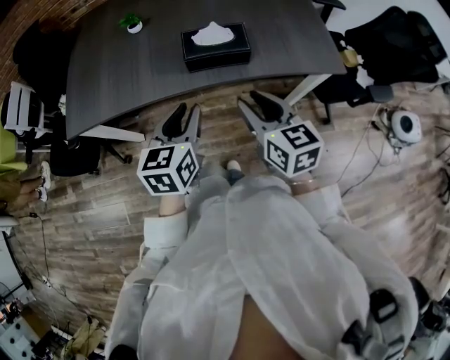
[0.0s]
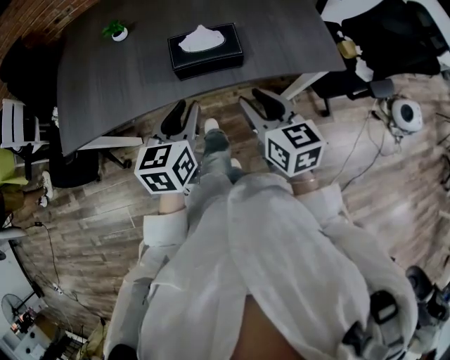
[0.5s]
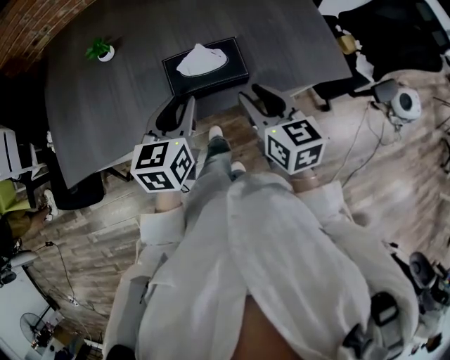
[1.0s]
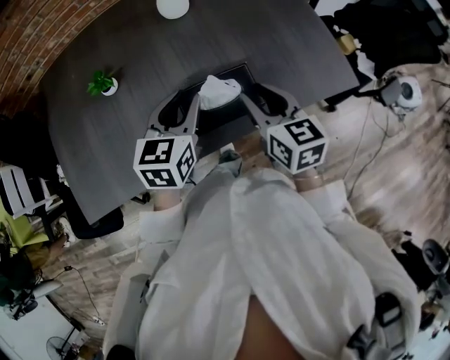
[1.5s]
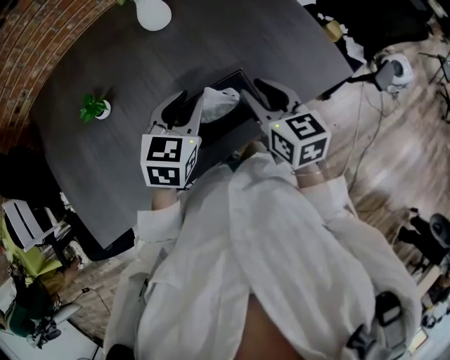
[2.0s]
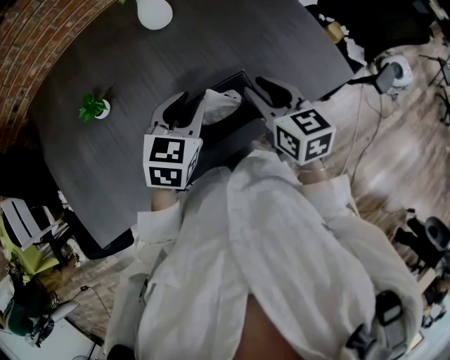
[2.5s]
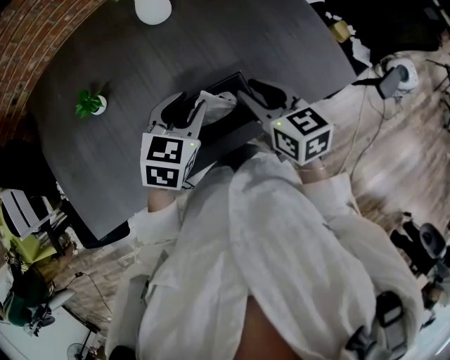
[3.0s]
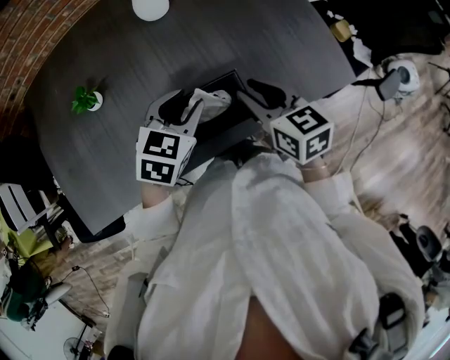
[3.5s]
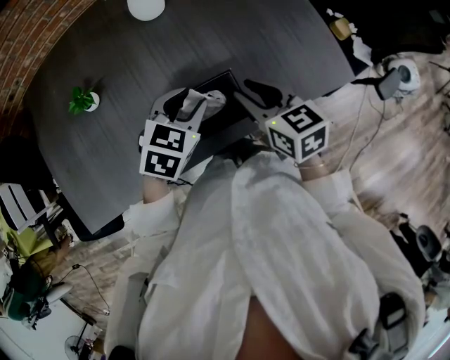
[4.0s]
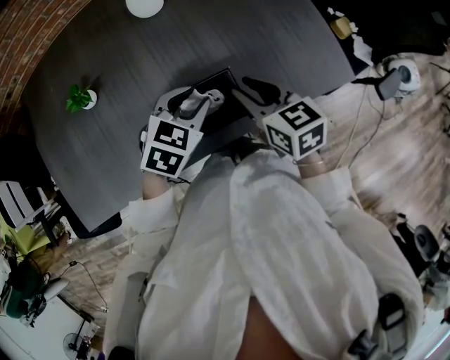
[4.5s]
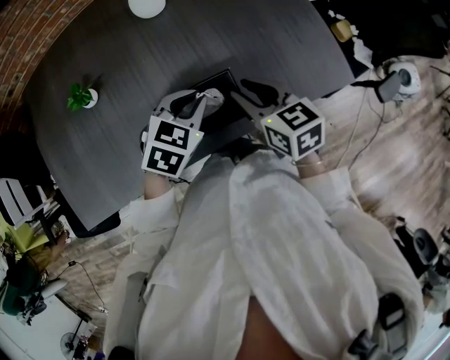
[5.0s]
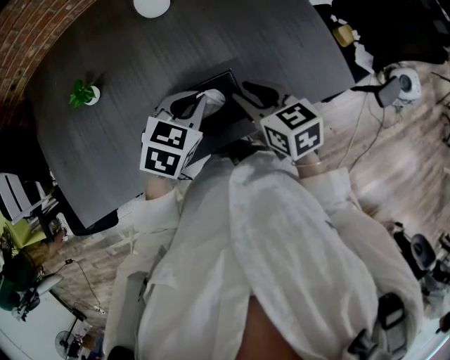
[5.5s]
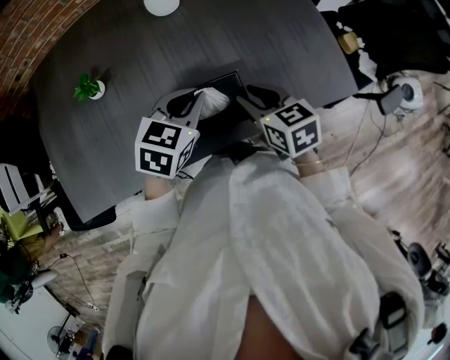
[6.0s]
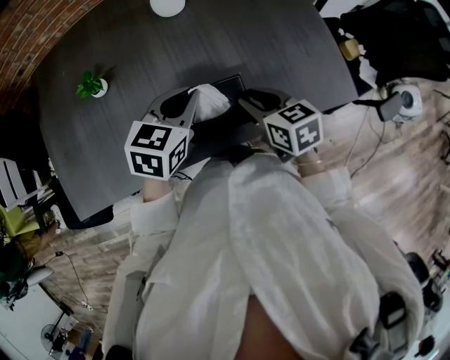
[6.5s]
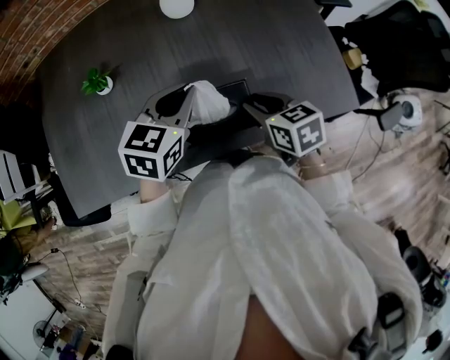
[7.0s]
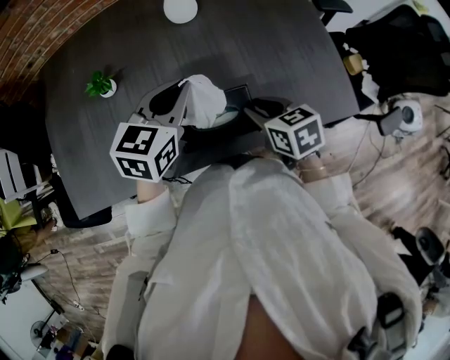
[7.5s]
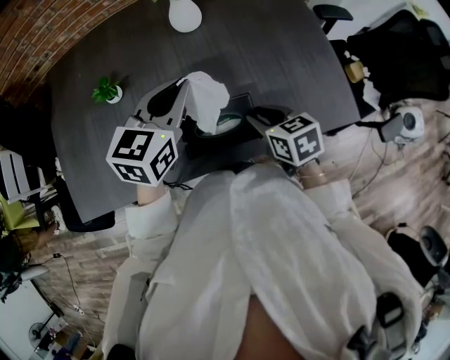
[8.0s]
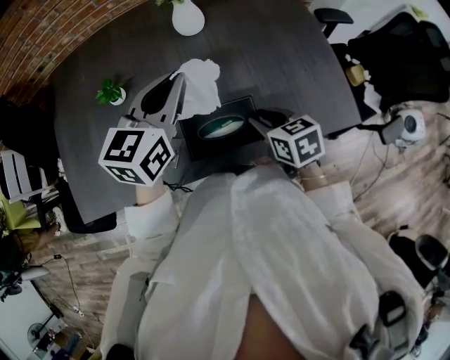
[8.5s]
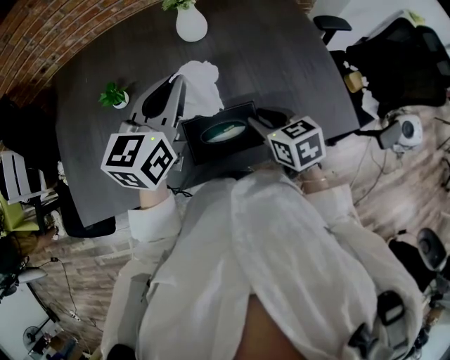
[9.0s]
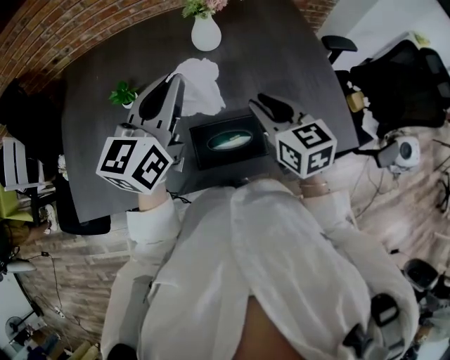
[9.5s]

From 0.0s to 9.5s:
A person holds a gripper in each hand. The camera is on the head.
From 0.0s to 2.0s: The grippers both shift forward by about 30 cm. The right gripper rotates some 20 degrees. Meanwhile the left gripper changes its angle by approximately 40 degrees.
From 2.0s to 4.0s: The left gripper ends up some 5 cm from where it was.
From 4.0s to 5.5s: The left gripper closes.
From 5.5s to 7.5s: The left gripper heads upward and to the left, covering roughly 10 cm, and changes its angle by about 20 degrees.
From 7.5s to 9.5s: The right gripper moves upward and forward, approximately 15 cm, and changes its angle by approximately 20 degrees; the left gripper travels upward by some 10 cm, and swivels approximately 30 degrees.

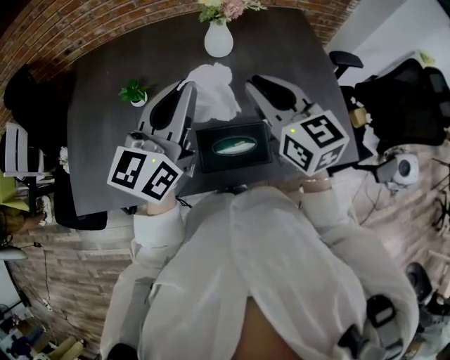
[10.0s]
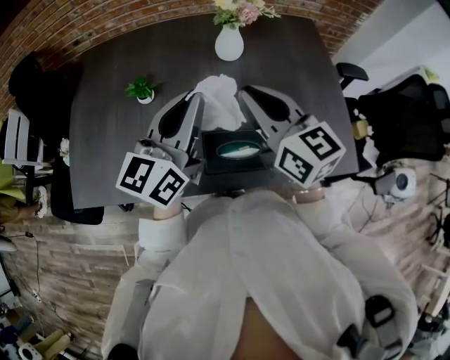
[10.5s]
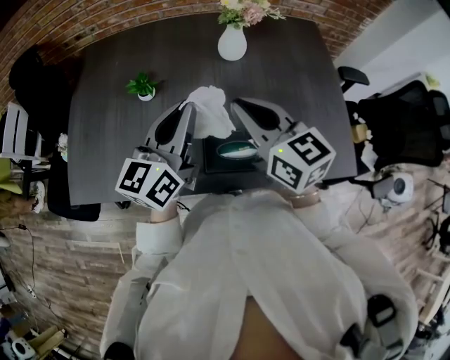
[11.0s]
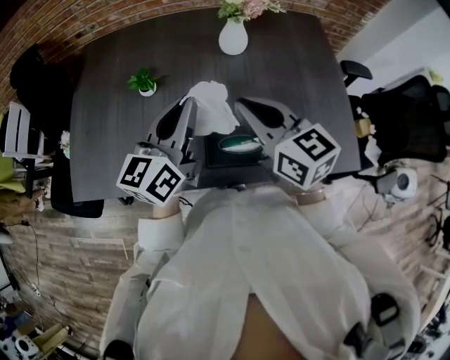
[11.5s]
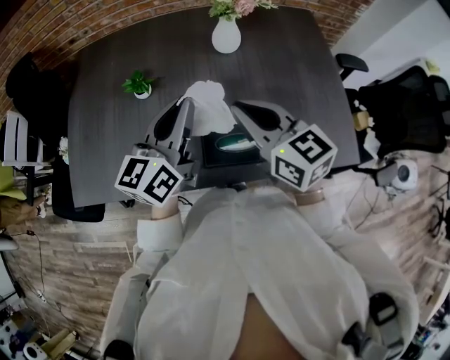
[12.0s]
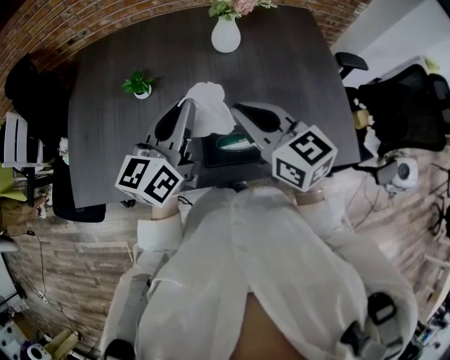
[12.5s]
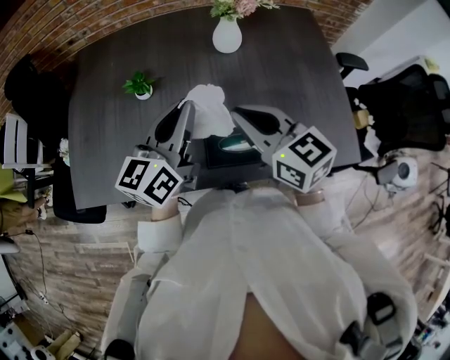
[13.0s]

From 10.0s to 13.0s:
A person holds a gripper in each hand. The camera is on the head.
From 10.0s to 11.5s: The right gripper goes roughly 5 cm to the left; the left gripper heads downward, covering roughly 5 cm.
From 11.5s to 13.0s: The grippers stay close to where they were, moving slightly.

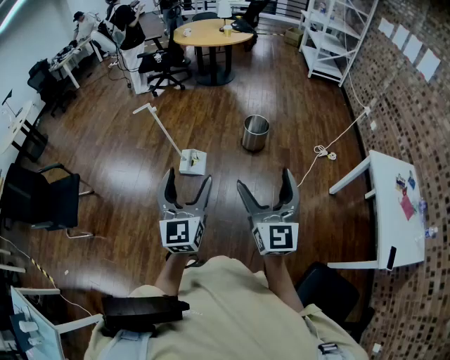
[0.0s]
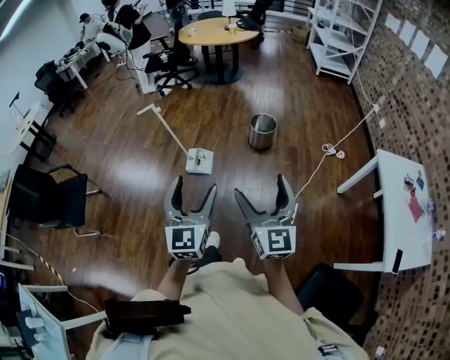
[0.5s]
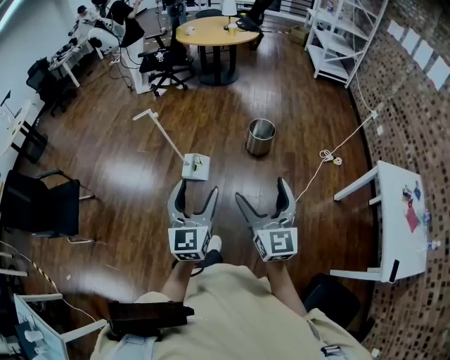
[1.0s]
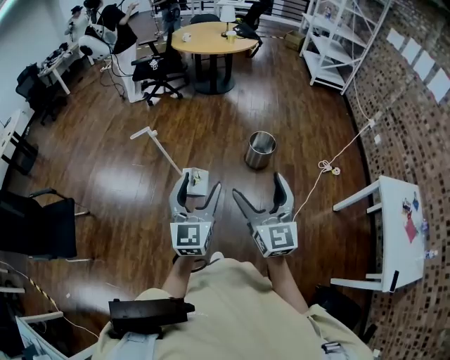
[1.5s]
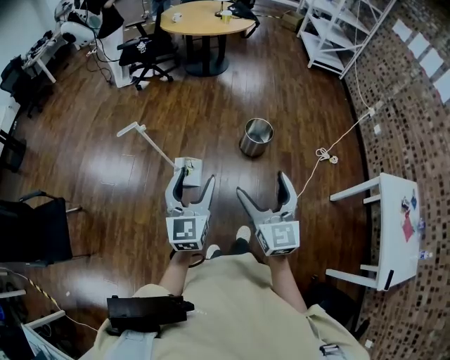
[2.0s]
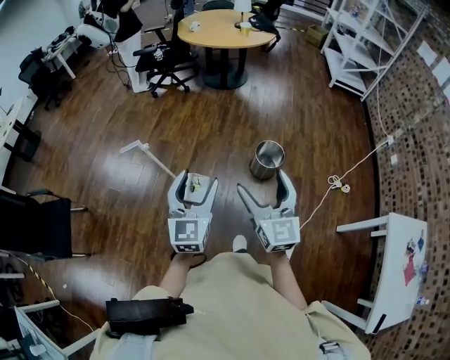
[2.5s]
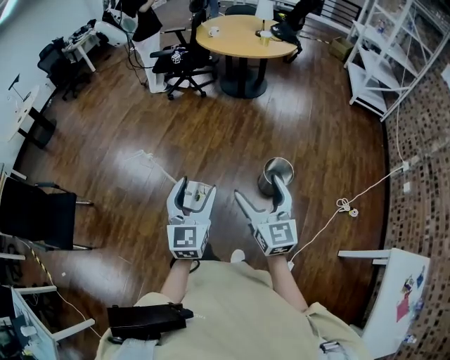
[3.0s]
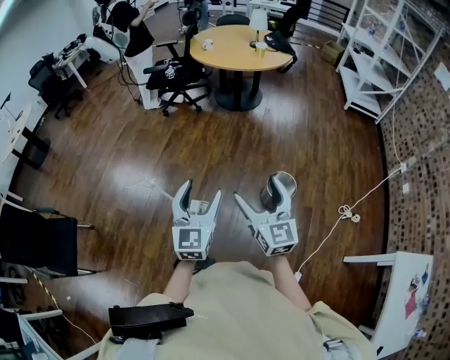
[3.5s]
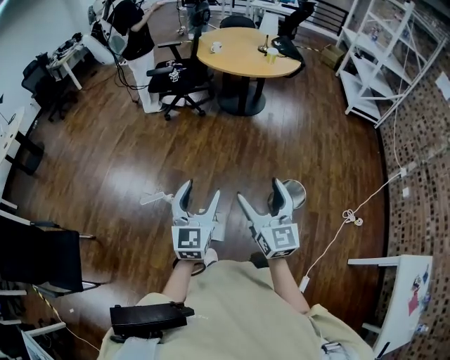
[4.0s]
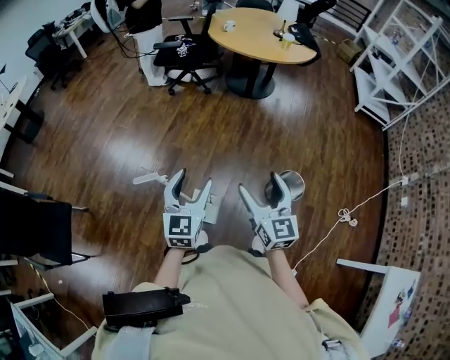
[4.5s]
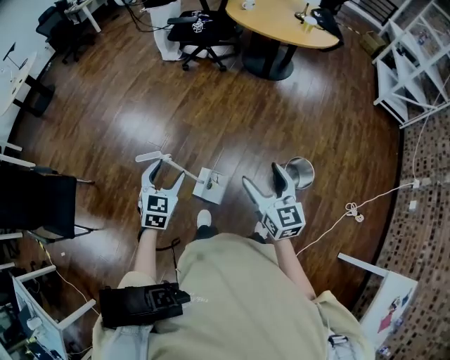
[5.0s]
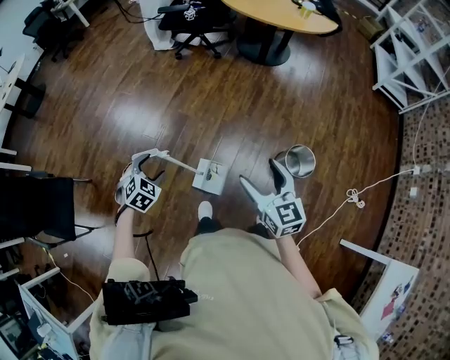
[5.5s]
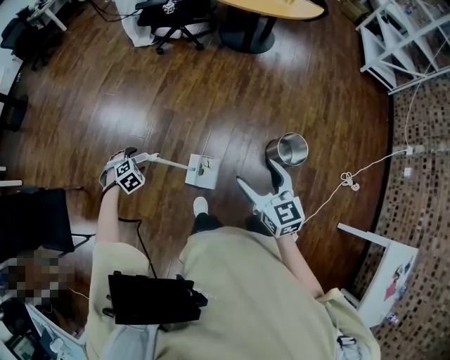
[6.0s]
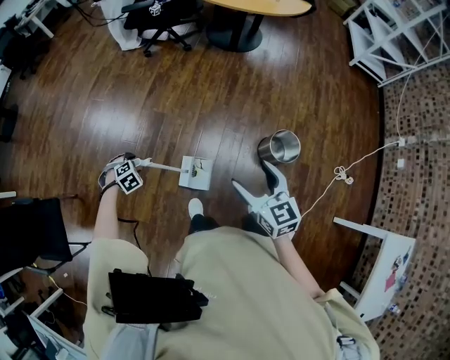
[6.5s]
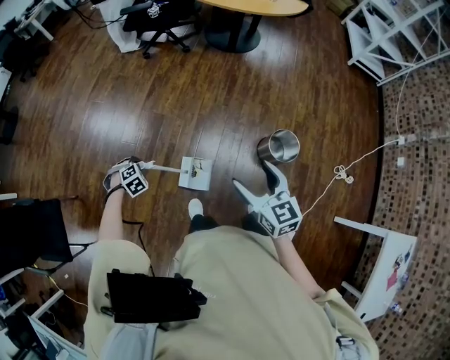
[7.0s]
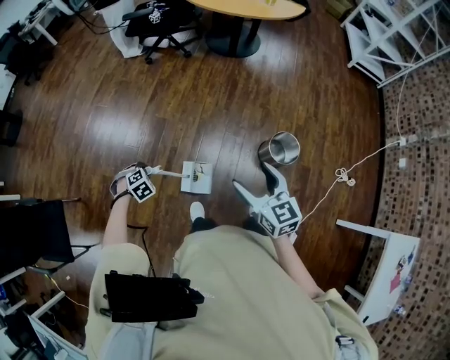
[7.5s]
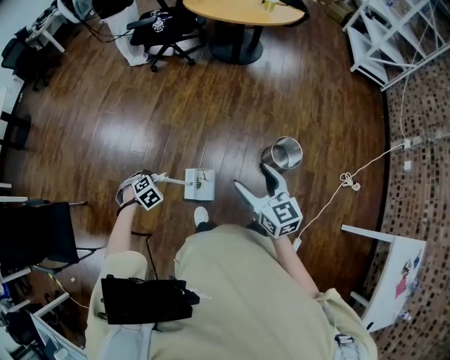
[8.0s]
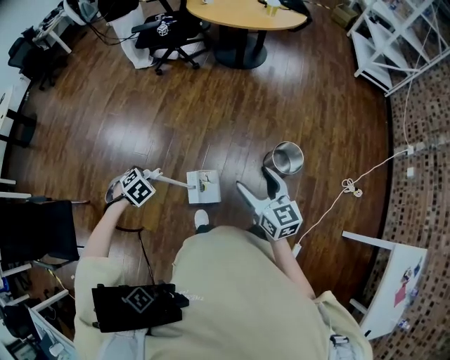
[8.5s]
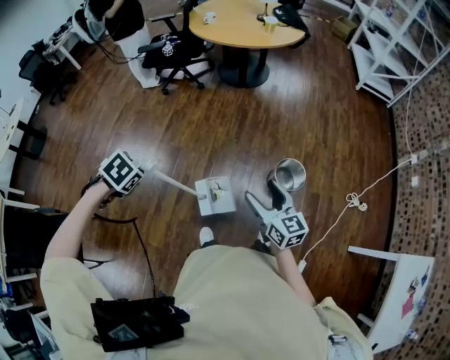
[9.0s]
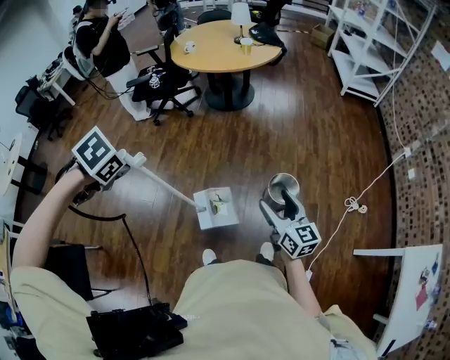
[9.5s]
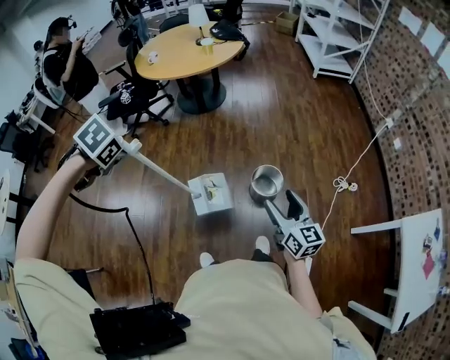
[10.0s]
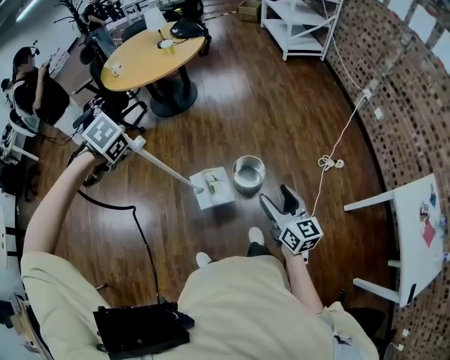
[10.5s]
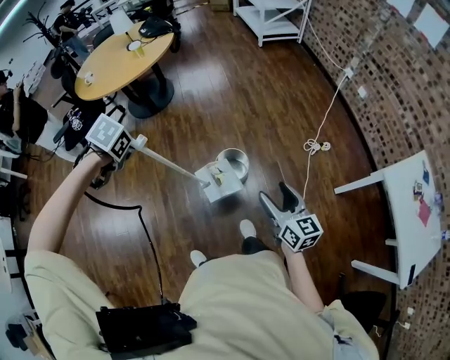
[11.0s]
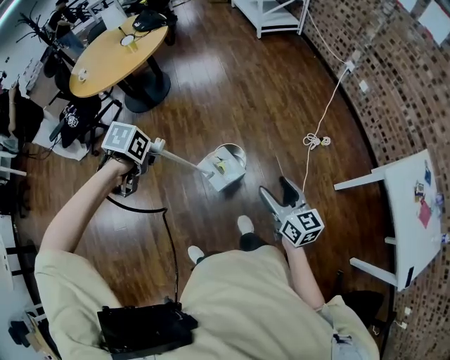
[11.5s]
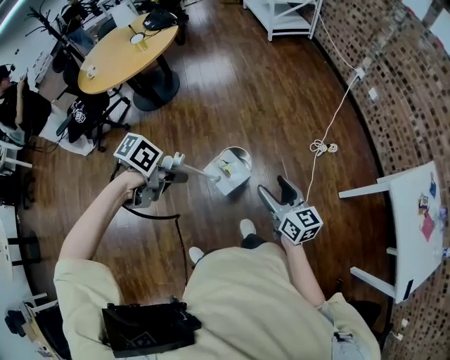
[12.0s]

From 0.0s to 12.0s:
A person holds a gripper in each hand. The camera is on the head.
From 0.0s to 2.0s: The two grippers go approximately 30 cm forward.
From 2.0s to 4.0s: The two grippers go some 35 cm forward.
From 4.0s to 6.0s: The left gripper heads downward and to the left, covering some 40 cm, and tilts its fingers some 70 degrees downward, while the right gripper goes roughly 15 cm downward, and turns by some 30 degrees.
From 6.0s to 8.0s: The left gripper moves roughly 10 cm, and closes.
From 8.0s to 10.0s: The left gripper is displaced upward by roughly 40 cm; the right gripper shifts by roughly 25 cm, and rotates roughly 30 degrees.
From 10.0s to 12.0s: The left gripper moves roughly 40 cm, and angles its fingers upward, by approximately 30 degrees, while the right gripper changes place by roughly 20 cm.

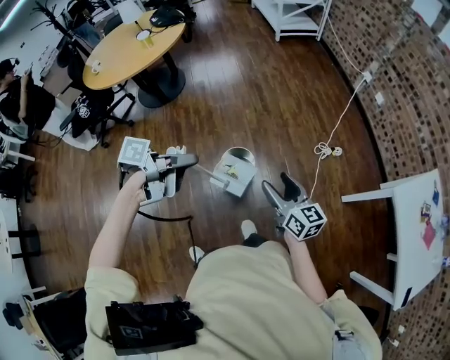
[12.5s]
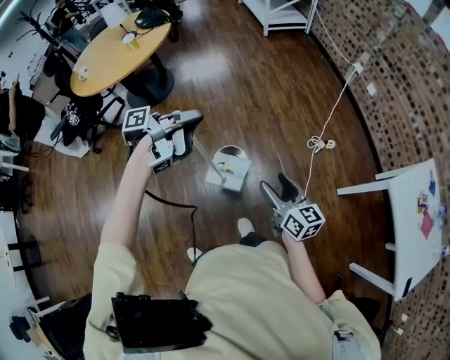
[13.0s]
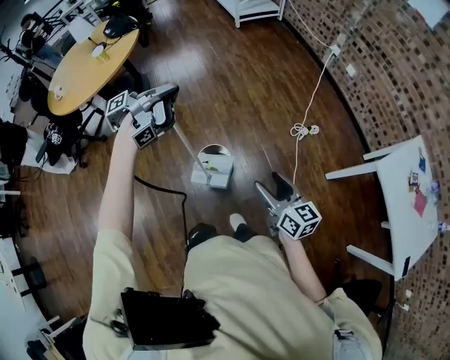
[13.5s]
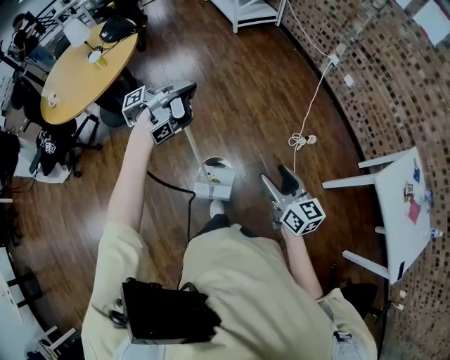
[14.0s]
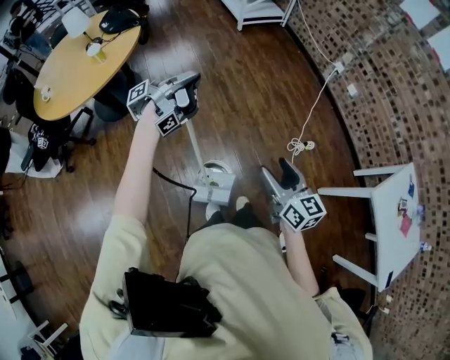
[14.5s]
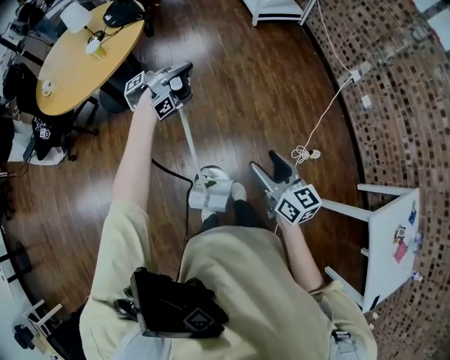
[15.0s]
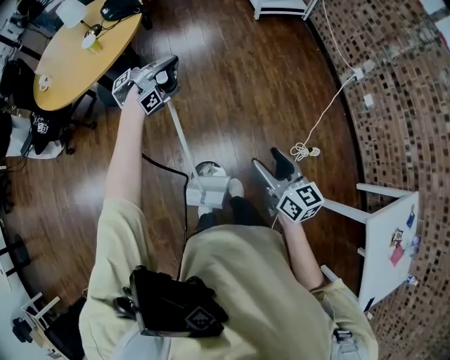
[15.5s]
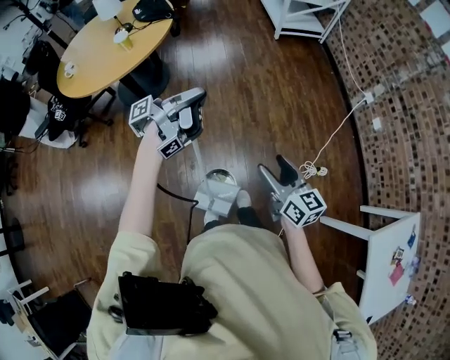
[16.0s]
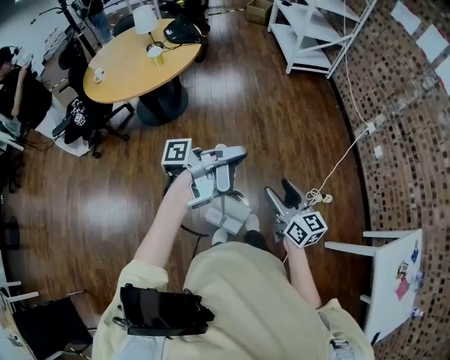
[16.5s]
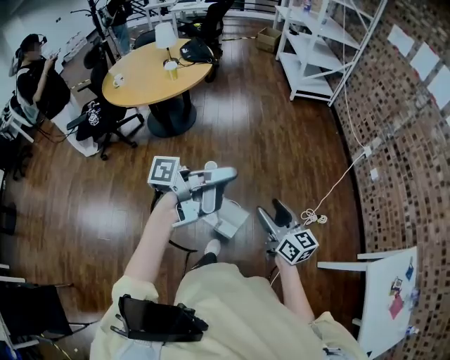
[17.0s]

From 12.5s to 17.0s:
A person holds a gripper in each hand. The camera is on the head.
From 12.5s to 14.5s: The right gripper heads forward, covering some 20 cm. The left gripper goes roughly 40 cm forward, and changes its angle by approximately 40 degrees.
From 14.5s to 17.0s: The left gripper travels backward and upward by approximately 35 cm, and turns by about 30 degrees; the right gripper goes about 5 cm backward, and swivels some 20 degrees.
